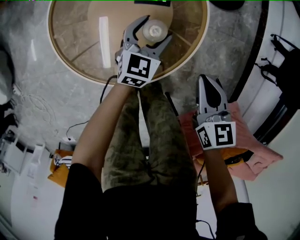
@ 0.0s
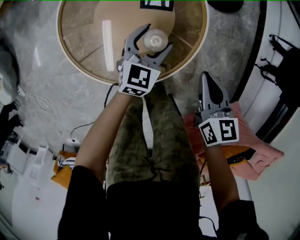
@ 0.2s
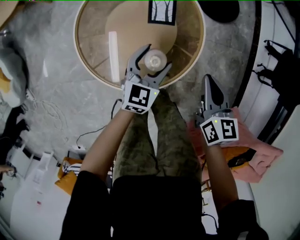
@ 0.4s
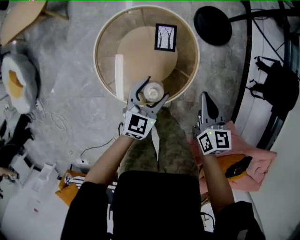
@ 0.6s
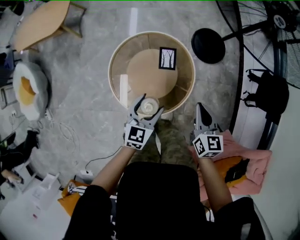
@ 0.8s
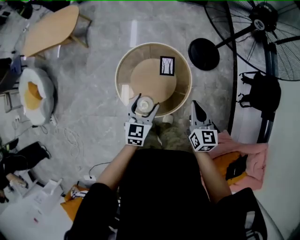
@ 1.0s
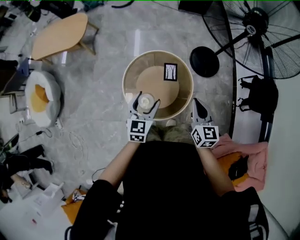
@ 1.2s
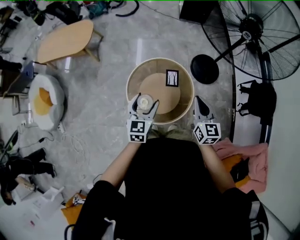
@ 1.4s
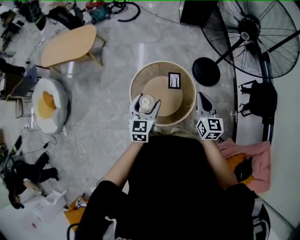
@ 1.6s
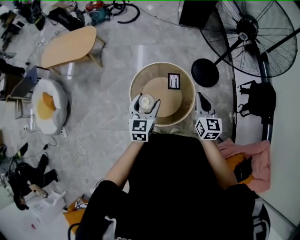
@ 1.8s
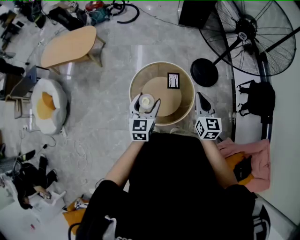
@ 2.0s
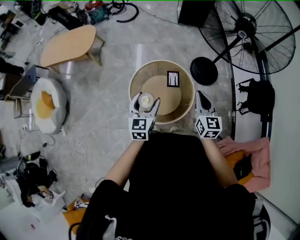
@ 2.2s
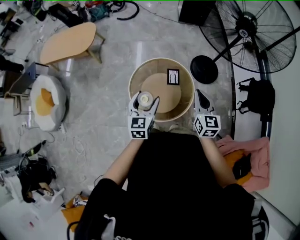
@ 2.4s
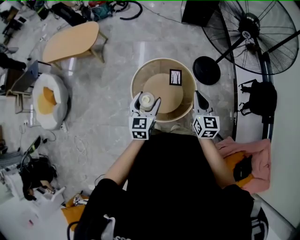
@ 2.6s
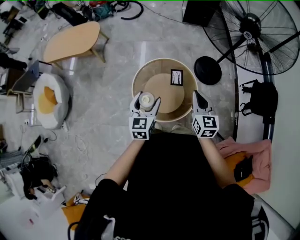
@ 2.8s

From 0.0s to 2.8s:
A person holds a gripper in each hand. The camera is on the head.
From 0.0s to 1.4s: Both grippers move upward, roughly 50 cm. The right gripper changes its angle by about 30 degrees.
From 1.4s to 2.8s: The grippers stay close to where they were, moving slightly.

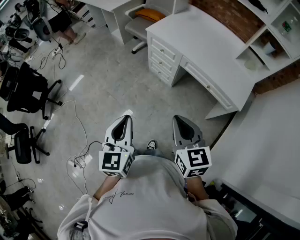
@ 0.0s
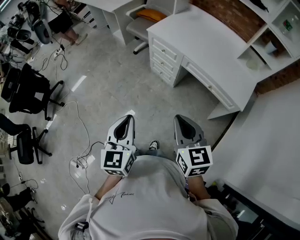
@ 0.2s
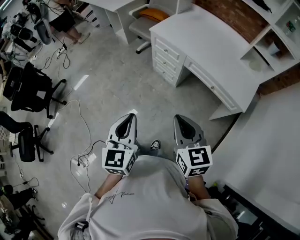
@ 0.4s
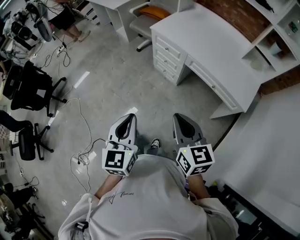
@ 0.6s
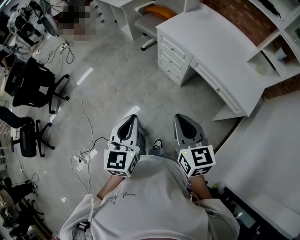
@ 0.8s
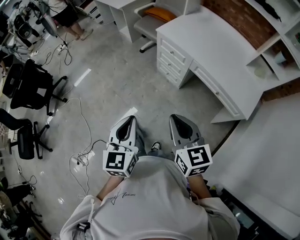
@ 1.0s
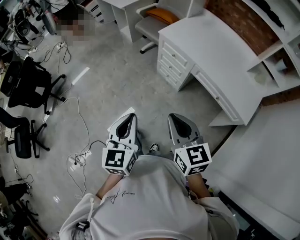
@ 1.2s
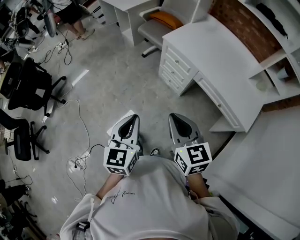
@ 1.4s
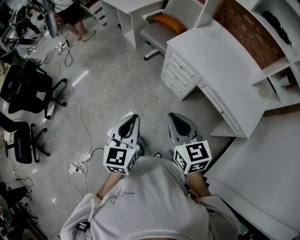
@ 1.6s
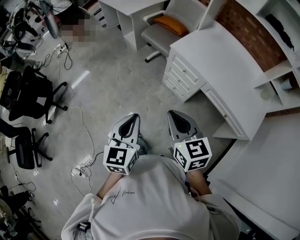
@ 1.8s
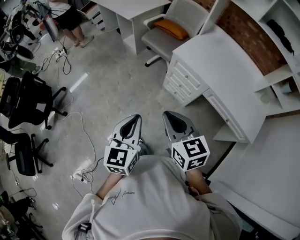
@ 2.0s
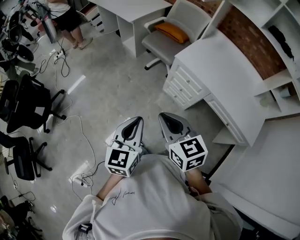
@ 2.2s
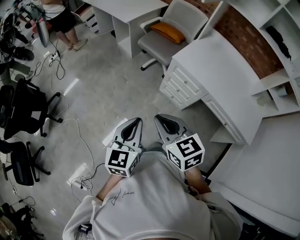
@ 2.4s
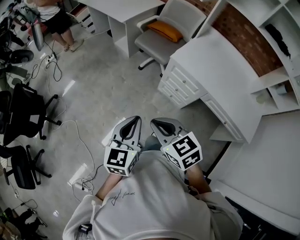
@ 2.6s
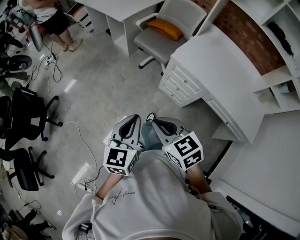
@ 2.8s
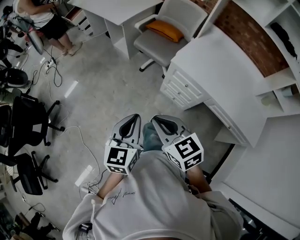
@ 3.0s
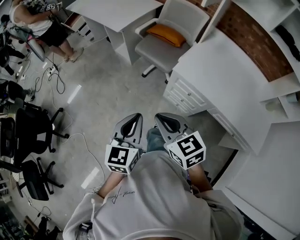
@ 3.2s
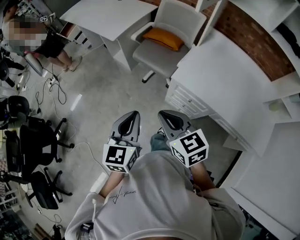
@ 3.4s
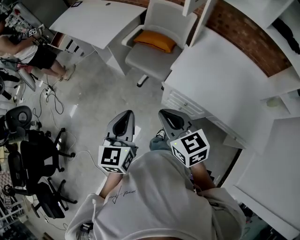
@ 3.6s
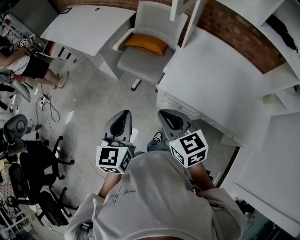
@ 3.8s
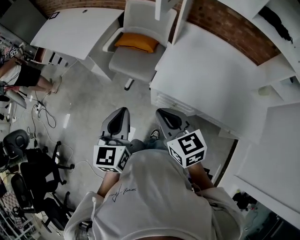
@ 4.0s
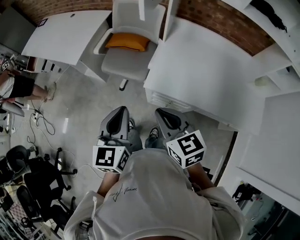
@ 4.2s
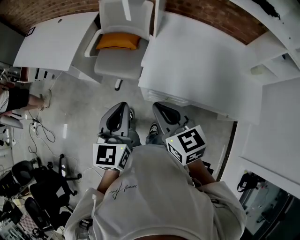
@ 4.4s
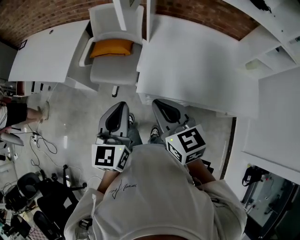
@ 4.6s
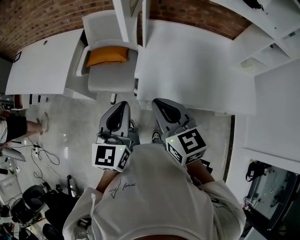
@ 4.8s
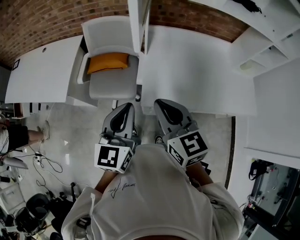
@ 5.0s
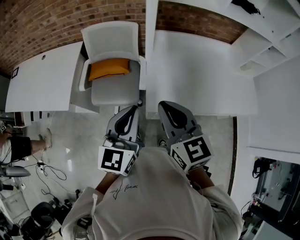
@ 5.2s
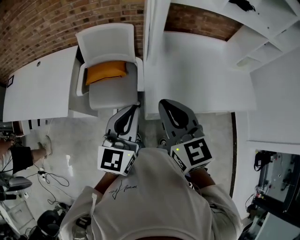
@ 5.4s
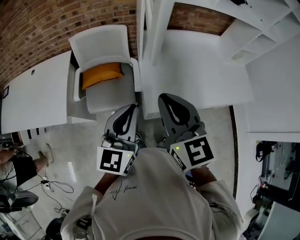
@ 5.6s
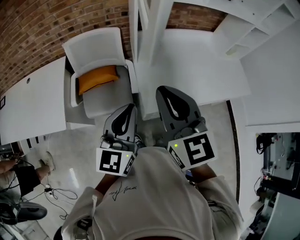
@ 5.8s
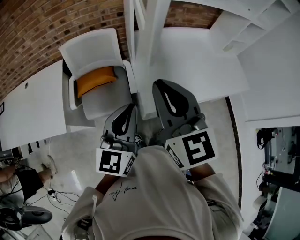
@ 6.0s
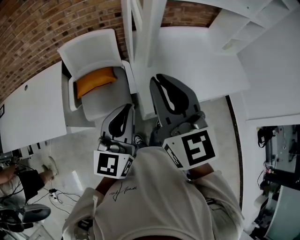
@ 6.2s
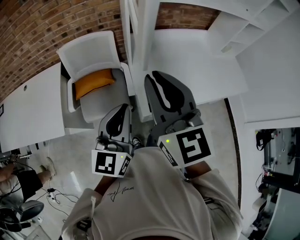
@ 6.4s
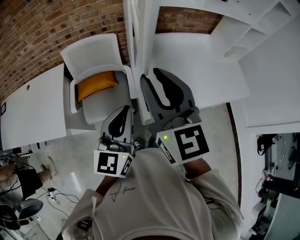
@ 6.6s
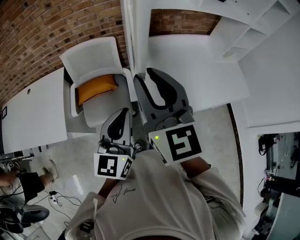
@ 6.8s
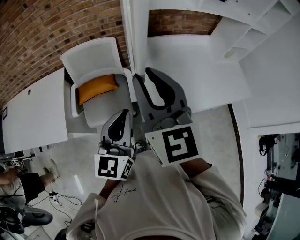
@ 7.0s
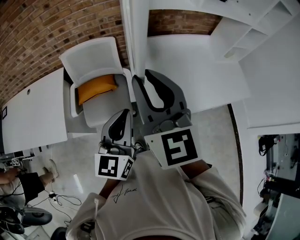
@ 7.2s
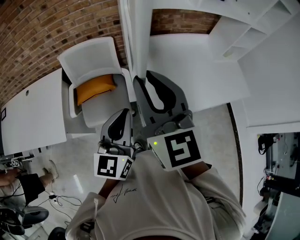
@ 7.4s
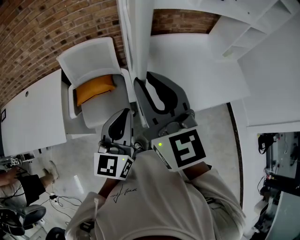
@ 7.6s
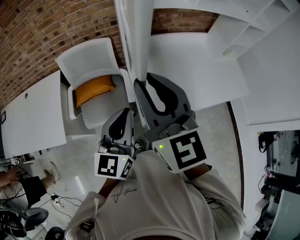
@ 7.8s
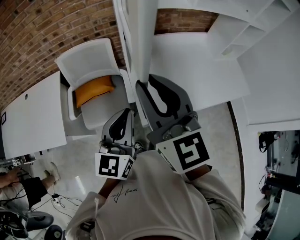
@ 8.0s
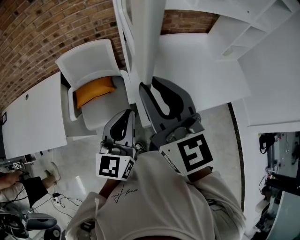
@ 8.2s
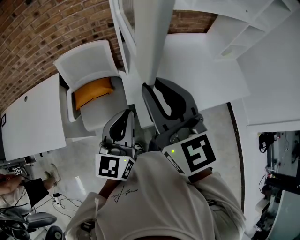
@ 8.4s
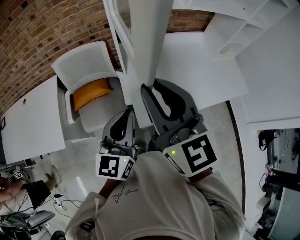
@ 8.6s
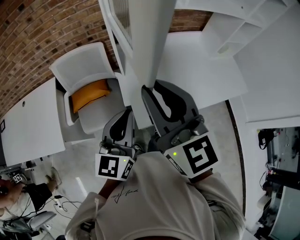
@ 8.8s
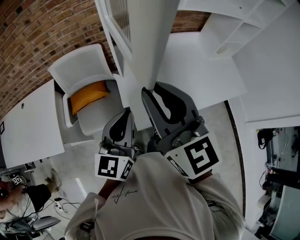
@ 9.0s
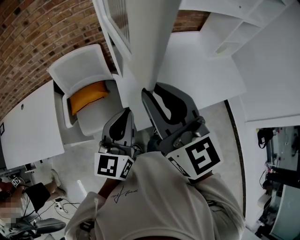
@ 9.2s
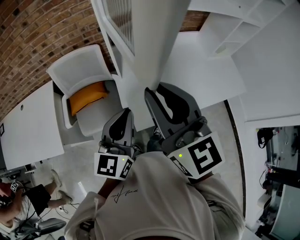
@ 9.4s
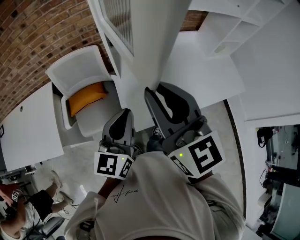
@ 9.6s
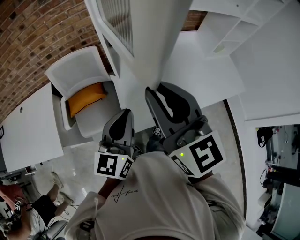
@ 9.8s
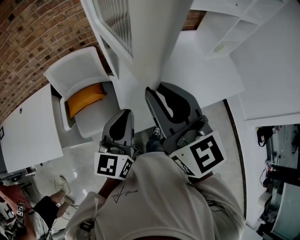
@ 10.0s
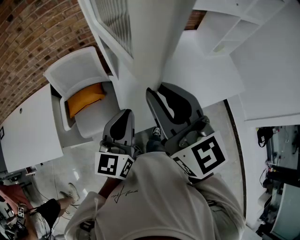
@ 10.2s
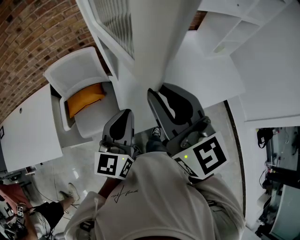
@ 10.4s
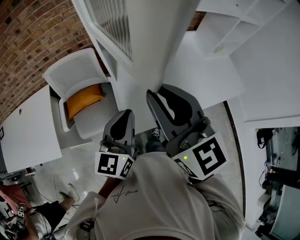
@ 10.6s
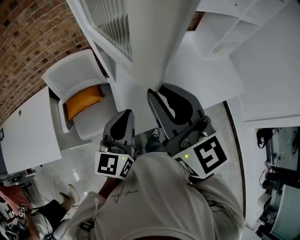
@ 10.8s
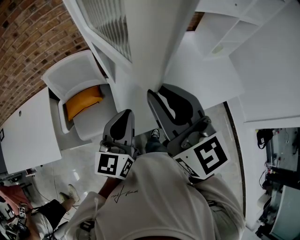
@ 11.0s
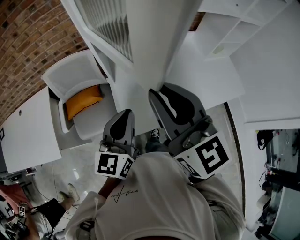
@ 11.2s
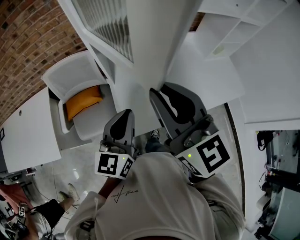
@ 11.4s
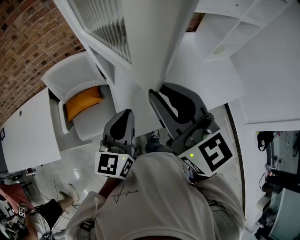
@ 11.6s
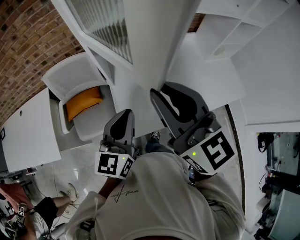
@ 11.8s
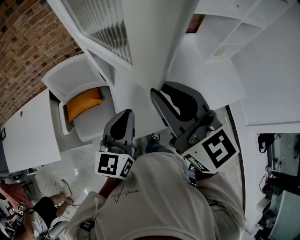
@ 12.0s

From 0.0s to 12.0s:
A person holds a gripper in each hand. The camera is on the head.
From 0.0s to 1.6s: Both grippers travel together forward and to the left, about 20 cm.
From 1.6s to 3.0s: The left gripper shifts approximately 25 cm forward. Meanwhile the right gripper moves forward and to the left, some 25 cm.
From 3.0s to 4.4s: The two grippers go about 30 cm forward and to the right. The right gripper swivels approximately 30 degrees.
From 4.4s to 6.0s: The right gripper shifts by some 20 cm, and changes its angle by roughly 40 degrees; the left gripper moves approximately 15 cm, and swivels about 40 degrees.
From 6.0s to 7.6s: The right gripper heads forward, covering approximately 5 cm.
From 7.6s to 9.0s: The right gripper travels to the right by about 5 cm. The left gripper moves roughly 5 cm.
From 9.0s to 10.4s: The grippers stay close to where they were, moving slightly.
From 10.4s to 12.0s: The right gripper shifts approximately 5 cm to the right. The left gripper ends up approximately 5 cm from where it was.

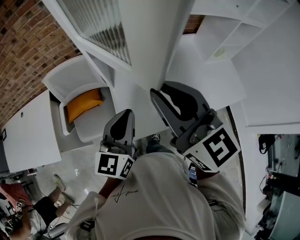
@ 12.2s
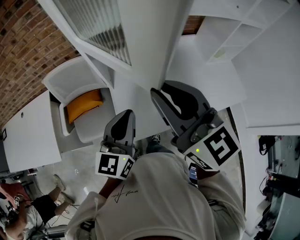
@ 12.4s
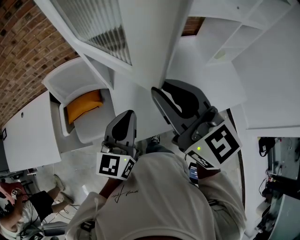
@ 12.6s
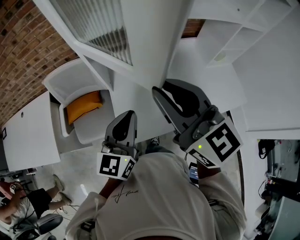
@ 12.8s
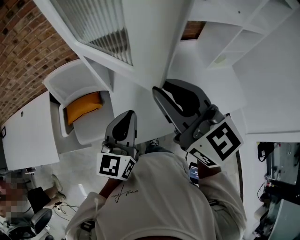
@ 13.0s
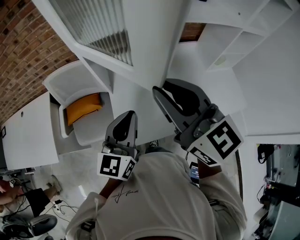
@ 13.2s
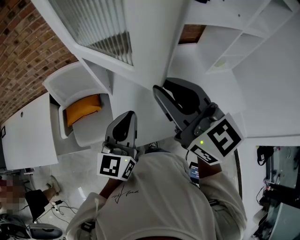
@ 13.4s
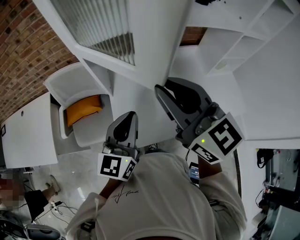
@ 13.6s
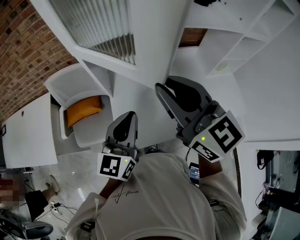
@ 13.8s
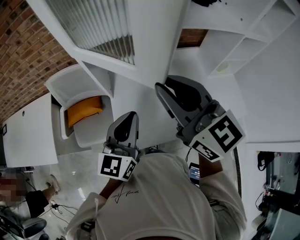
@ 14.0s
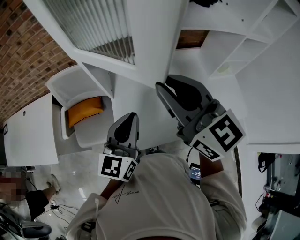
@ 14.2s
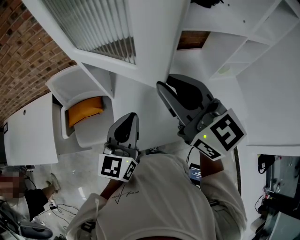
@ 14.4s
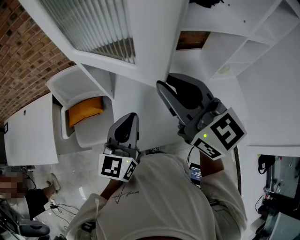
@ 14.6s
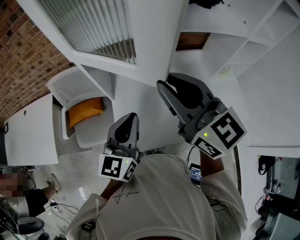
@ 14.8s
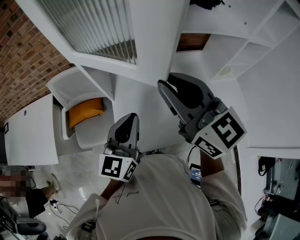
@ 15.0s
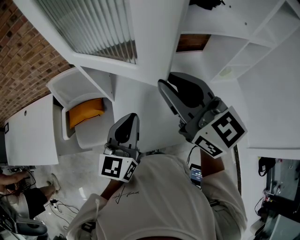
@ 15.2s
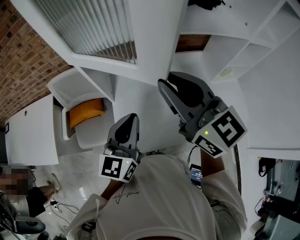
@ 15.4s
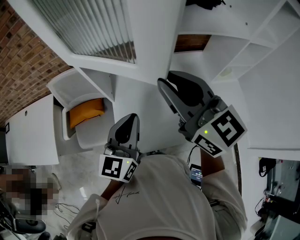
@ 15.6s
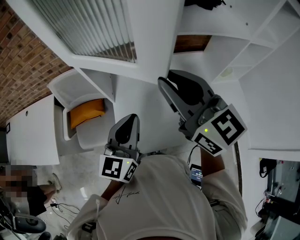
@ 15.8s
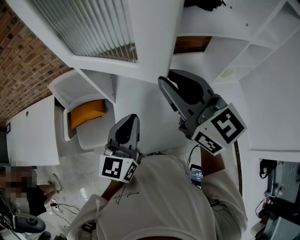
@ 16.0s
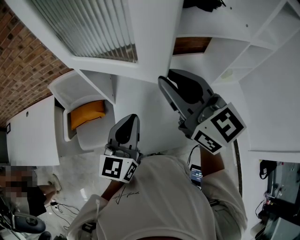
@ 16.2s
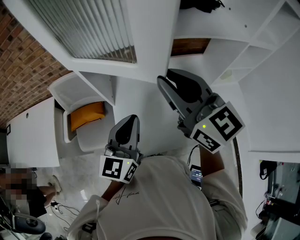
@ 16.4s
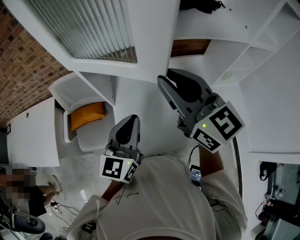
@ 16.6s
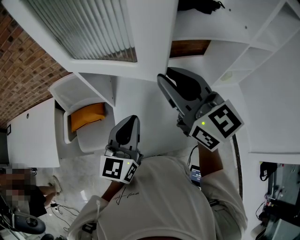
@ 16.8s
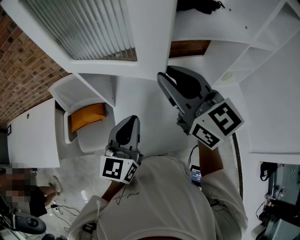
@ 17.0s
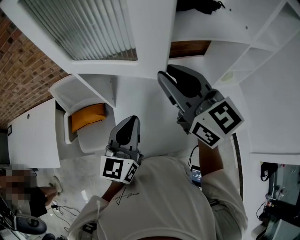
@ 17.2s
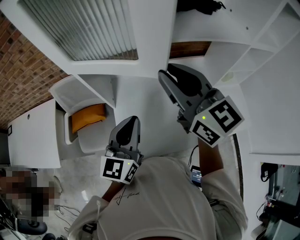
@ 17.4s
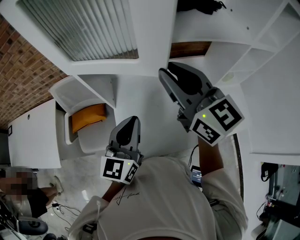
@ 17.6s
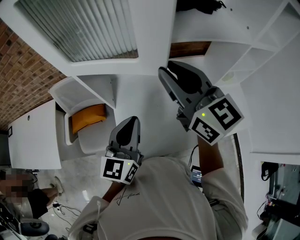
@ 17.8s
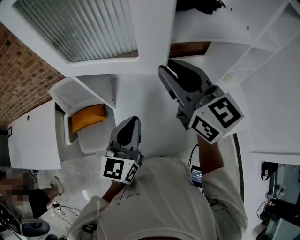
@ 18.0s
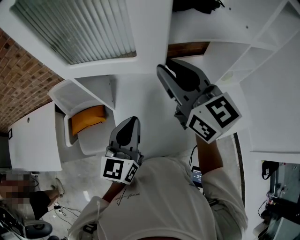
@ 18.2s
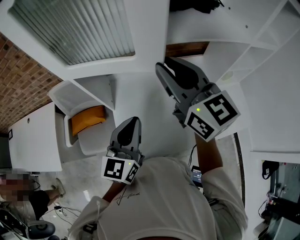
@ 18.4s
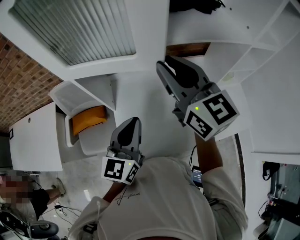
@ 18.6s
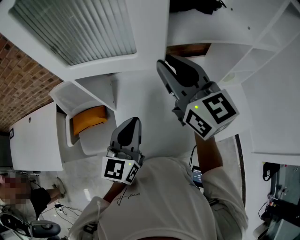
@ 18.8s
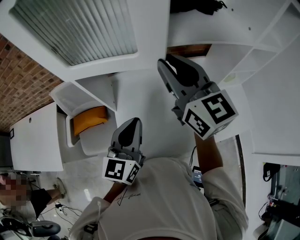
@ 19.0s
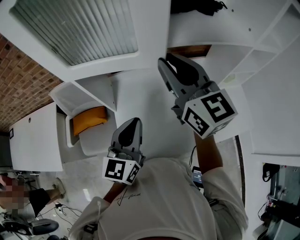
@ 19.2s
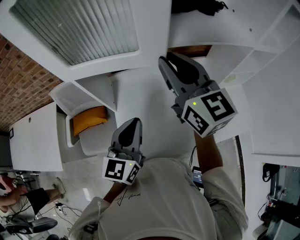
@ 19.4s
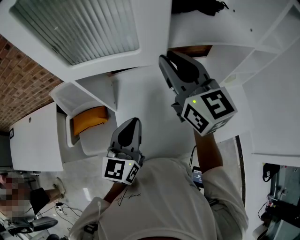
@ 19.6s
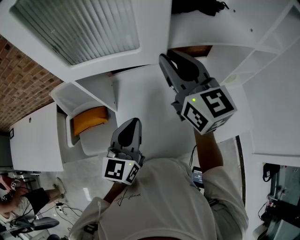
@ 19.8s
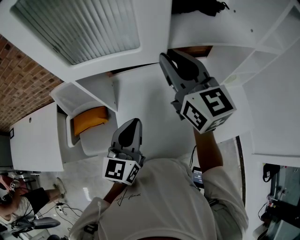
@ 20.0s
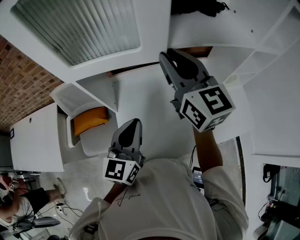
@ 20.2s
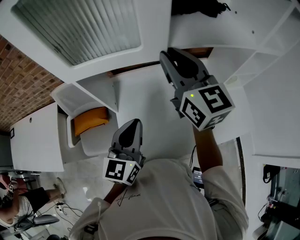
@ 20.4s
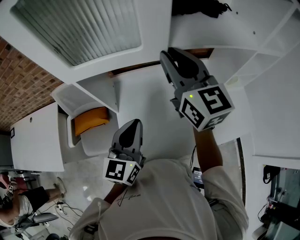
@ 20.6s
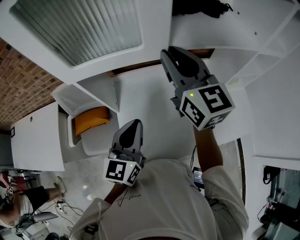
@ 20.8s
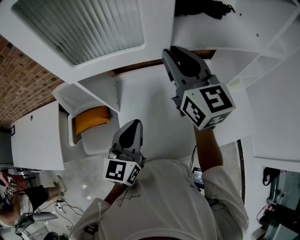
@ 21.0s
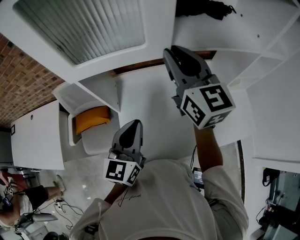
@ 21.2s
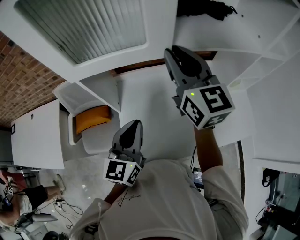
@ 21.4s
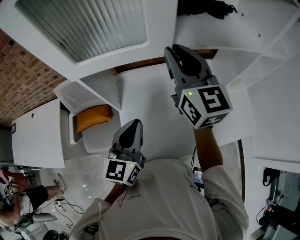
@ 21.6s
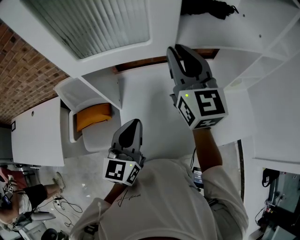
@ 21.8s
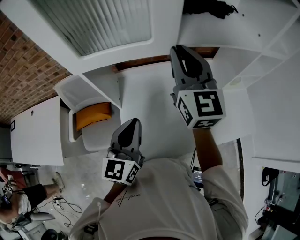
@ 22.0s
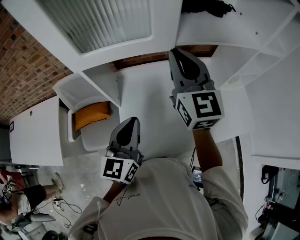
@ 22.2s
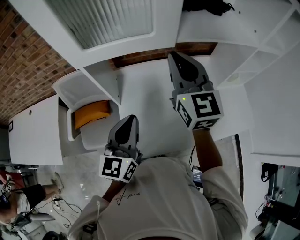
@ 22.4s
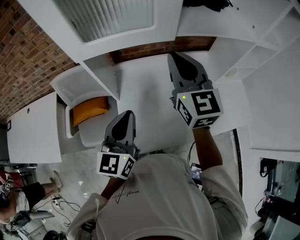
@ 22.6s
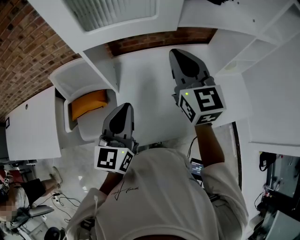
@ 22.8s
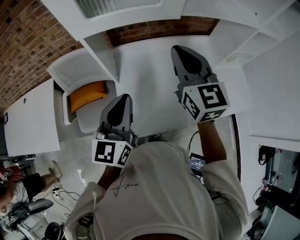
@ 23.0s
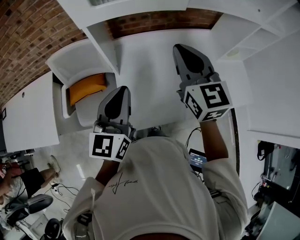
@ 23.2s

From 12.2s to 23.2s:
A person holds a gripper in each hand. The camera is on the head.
From 12.2s to 13.8s: The right gripper moves approximately 5 cm; the left gripper changes place by approximately 5 cm.
From 13.8s to 15.4s: The right gripper moves roughly 5 cm.
From 15.4s to 17.0s: The grippers make only small movements.
From 17.0s to 18.4s: There are only small adjustments of the grippers.
From 18.4s to 20.0s: The grippers stay close to where they were, moving slightly.
From 20.0s to 21.6s: The grippers stay close to where they were, moving slightly.
From 21.6s to 23.2s: The right gripper travels backward and downward by approximately 15 cm; the left gripper travels to the left and backward by roughly 10 cm.
